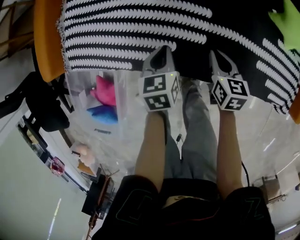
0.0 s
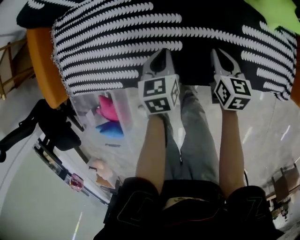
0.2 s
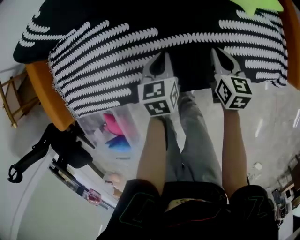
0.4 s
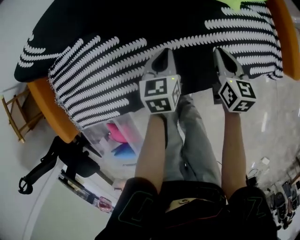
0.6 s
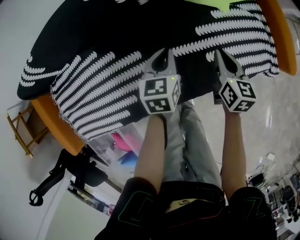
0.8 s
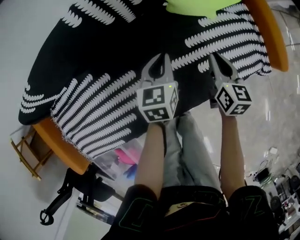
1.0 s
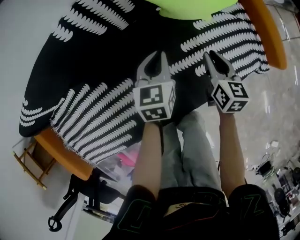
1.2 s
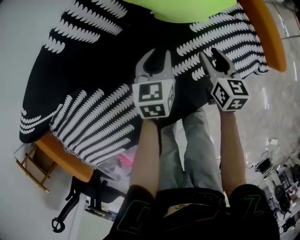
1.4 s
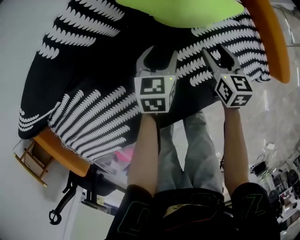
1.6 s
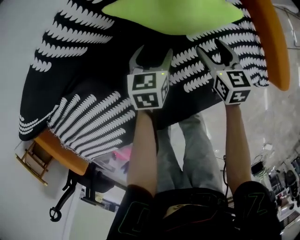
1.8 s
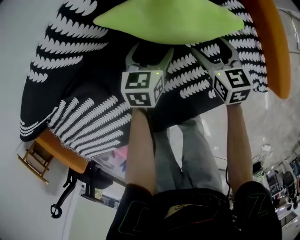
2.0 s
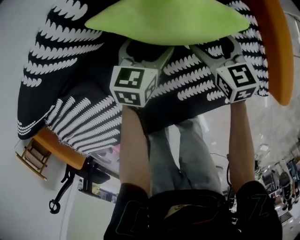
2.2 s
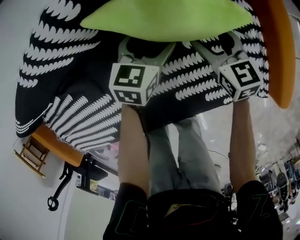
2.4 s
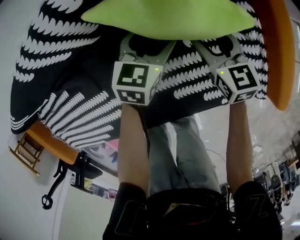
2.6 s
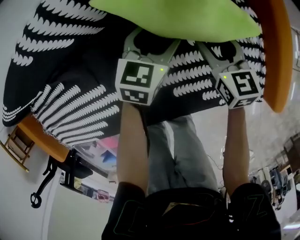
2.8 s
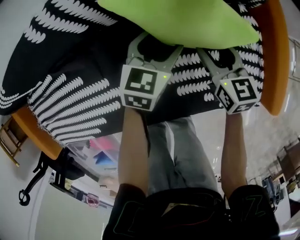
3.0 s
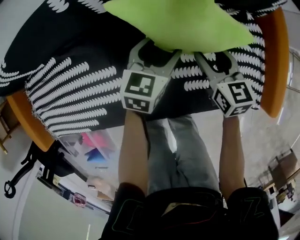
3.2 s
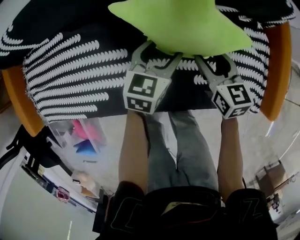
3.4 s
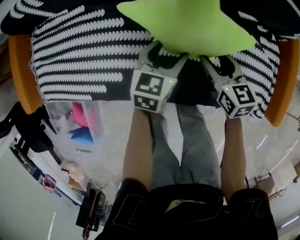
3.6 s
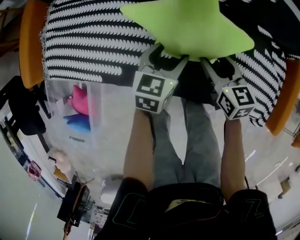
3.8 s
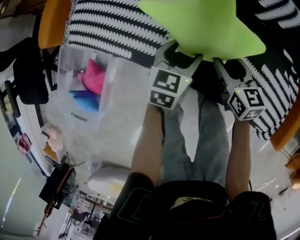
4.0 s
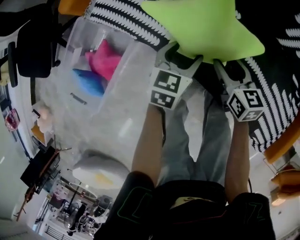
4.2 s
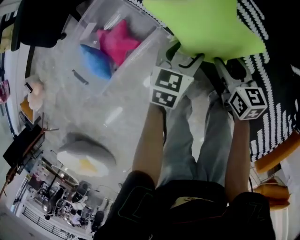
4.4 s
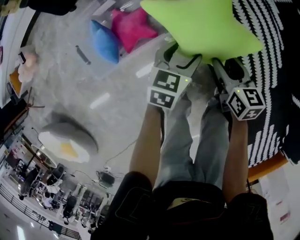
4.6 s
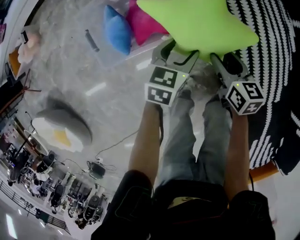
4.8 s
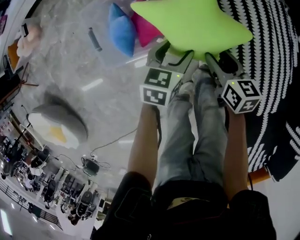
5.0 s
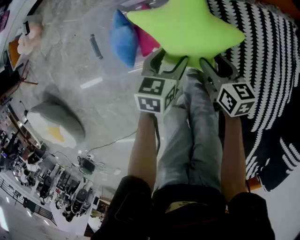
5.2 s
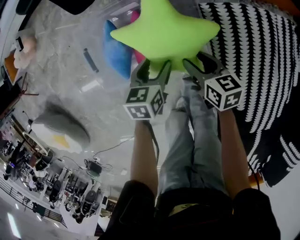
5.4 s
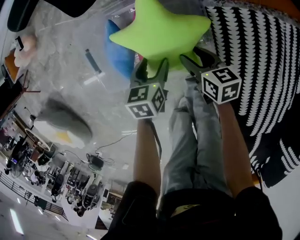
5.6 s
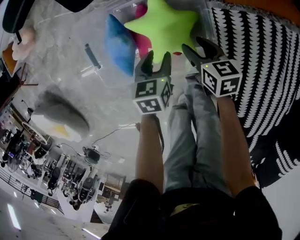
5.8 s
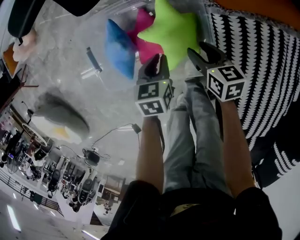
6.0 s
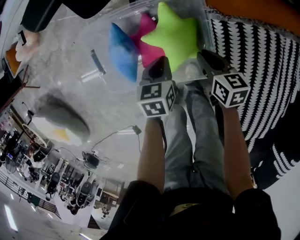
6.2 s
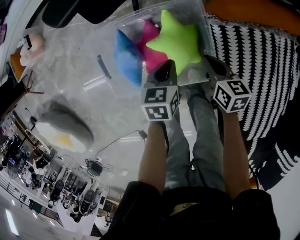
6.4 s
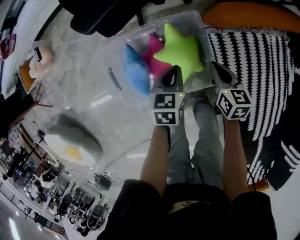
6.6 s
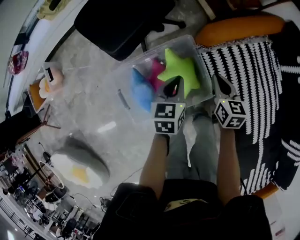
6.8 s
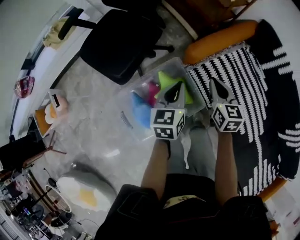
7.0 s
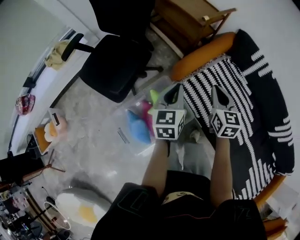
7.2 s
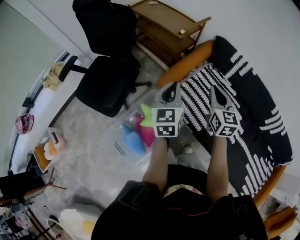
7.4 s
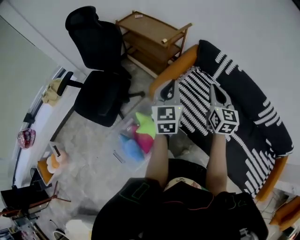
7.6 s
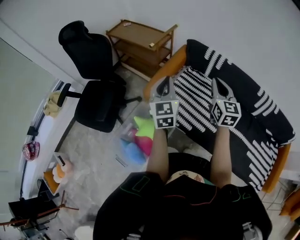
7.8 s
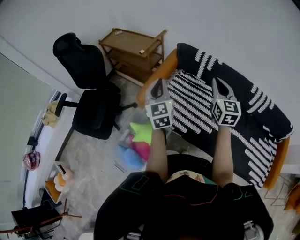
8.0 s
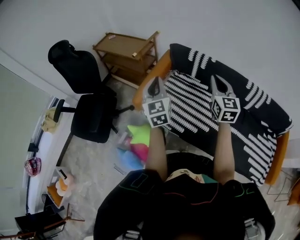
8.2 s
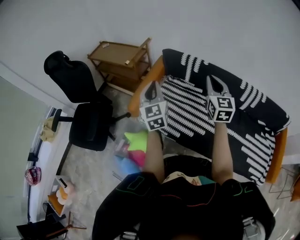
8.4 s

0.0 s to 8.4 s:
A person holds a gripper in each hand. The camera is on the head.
0.0 to 1.4 s: Both grippers are carried about 50 cm. The right gripper rotates about 40 degrees, and opens, while the left gripper changes its angle by approximately 50 degrees.
1.4 to 2.8 s: The left gripper travels forward and to the right by about 15 cm, and opens, while the right gripper goes approximately 15 cm forward, changes its angle by roughly 30 degrees, and opens, then closes once more.
2.8 to 4.2 s: The left gripper goes up and down, some 15 cm each way, reversing 2 times, and rotates approximately 50 degrees, while the right gripper moves up and down over approximately 20 cm, changing direction 2 times, and swivels approximately 50 degrees.
4.2 to 5.6 s: The two grippers travel together, approximately 50 cm. The right gripper rotates approximately 50 degrees, while the left gripper rotates some 70 degrees.
5.6 to 7.0 s: Both grippers move upward, roughly 30 cm. The right gripper turns by about 50 degrees, and closes its fingers. Meanwhile the left gripper rotates about 40 degrees, and closes.
7.0 to 8.4 s: The right gripper ends up some 50 cm from where it was, and swivels roughly 40 degrees; the left gripper ends up some 40 cm from where it was, and turns by some 30 degrees.

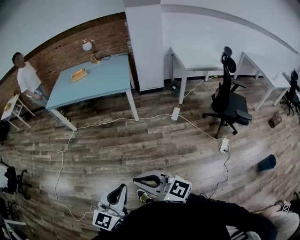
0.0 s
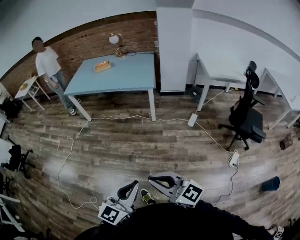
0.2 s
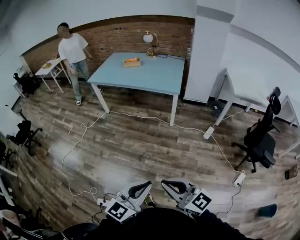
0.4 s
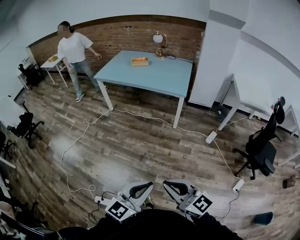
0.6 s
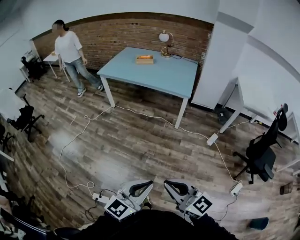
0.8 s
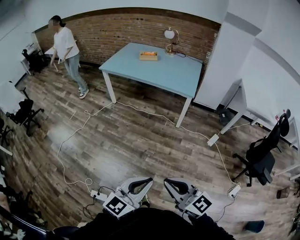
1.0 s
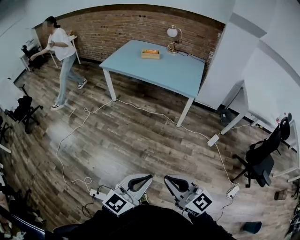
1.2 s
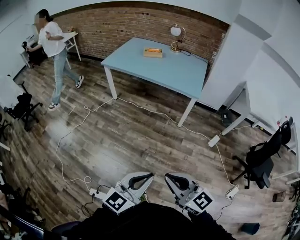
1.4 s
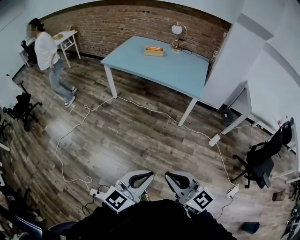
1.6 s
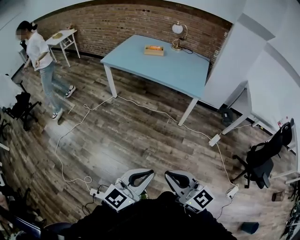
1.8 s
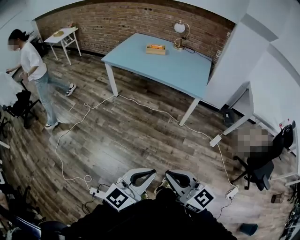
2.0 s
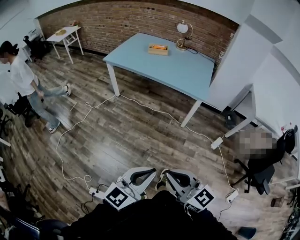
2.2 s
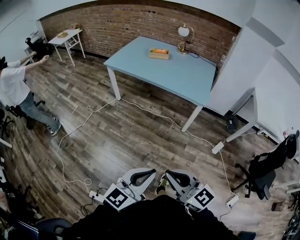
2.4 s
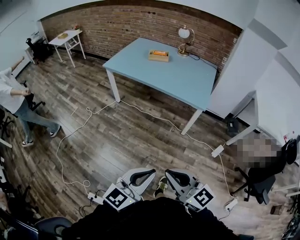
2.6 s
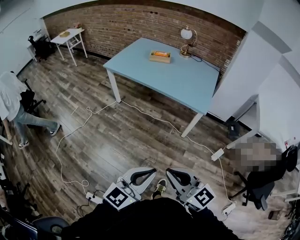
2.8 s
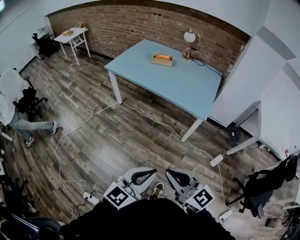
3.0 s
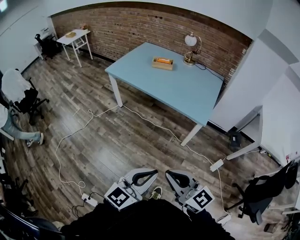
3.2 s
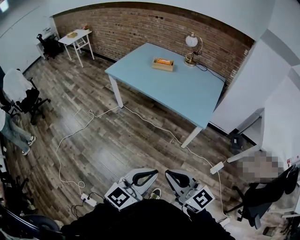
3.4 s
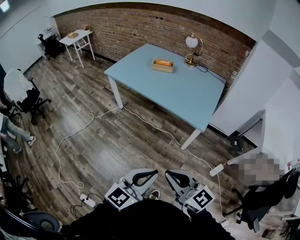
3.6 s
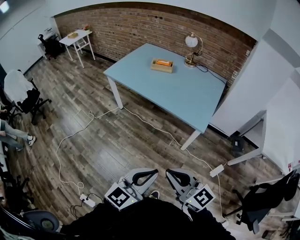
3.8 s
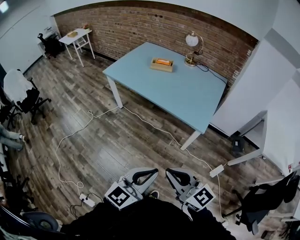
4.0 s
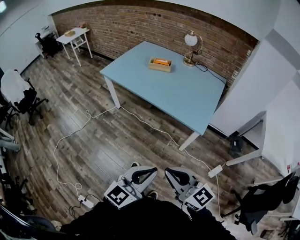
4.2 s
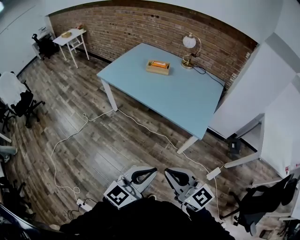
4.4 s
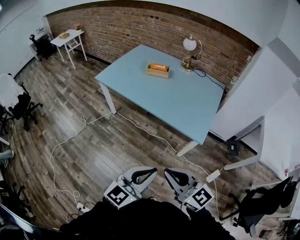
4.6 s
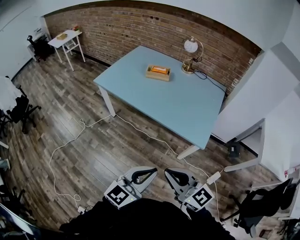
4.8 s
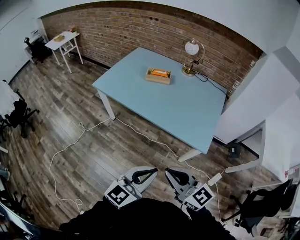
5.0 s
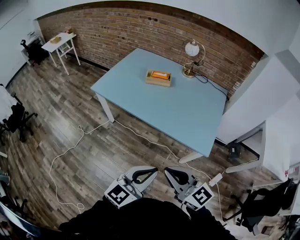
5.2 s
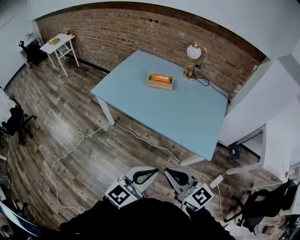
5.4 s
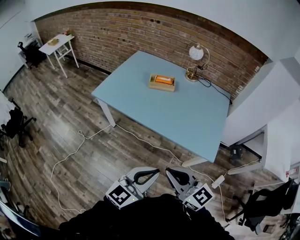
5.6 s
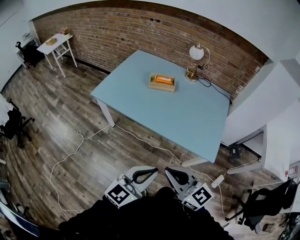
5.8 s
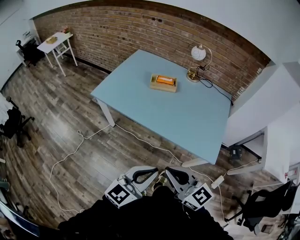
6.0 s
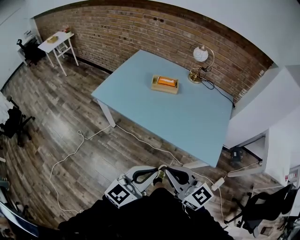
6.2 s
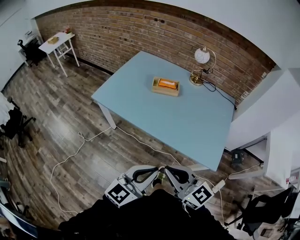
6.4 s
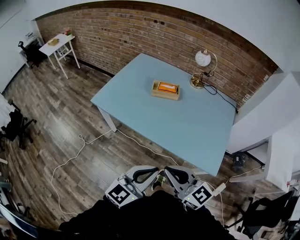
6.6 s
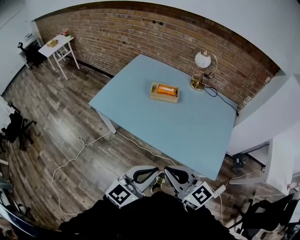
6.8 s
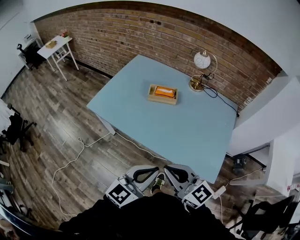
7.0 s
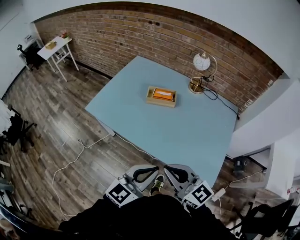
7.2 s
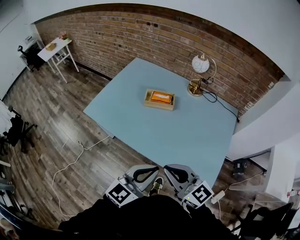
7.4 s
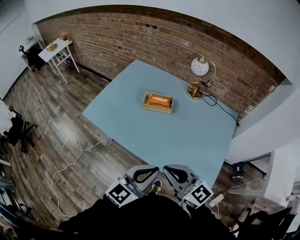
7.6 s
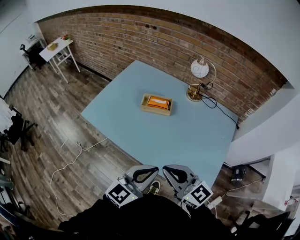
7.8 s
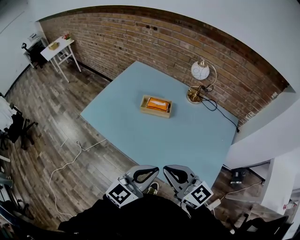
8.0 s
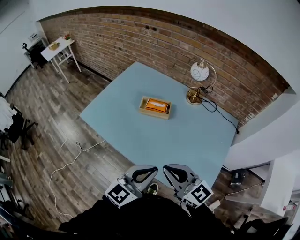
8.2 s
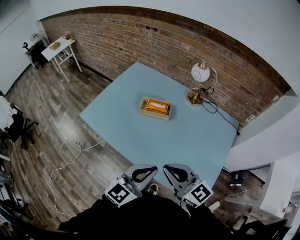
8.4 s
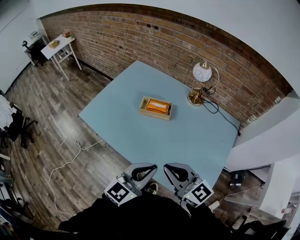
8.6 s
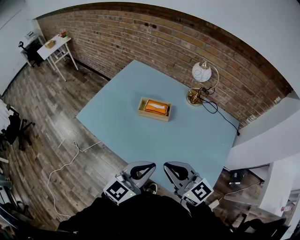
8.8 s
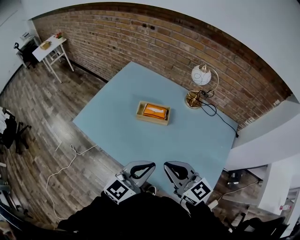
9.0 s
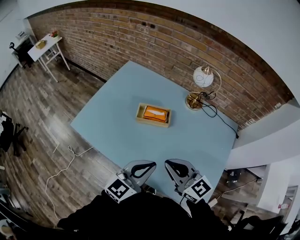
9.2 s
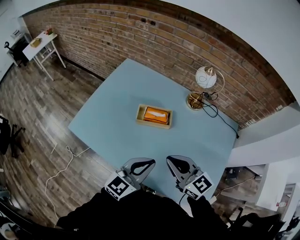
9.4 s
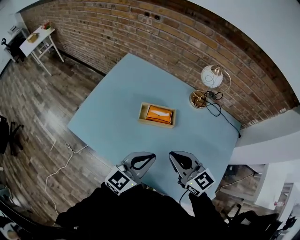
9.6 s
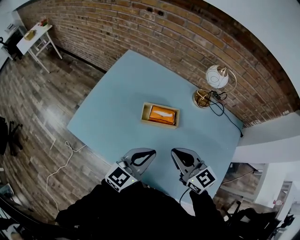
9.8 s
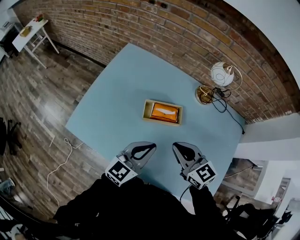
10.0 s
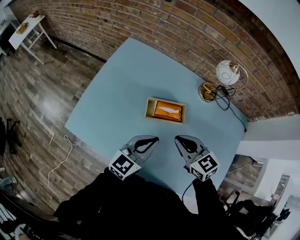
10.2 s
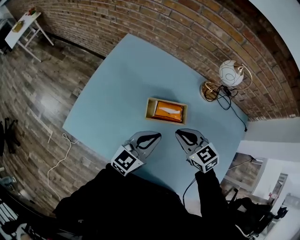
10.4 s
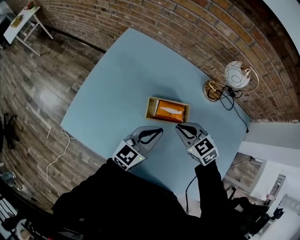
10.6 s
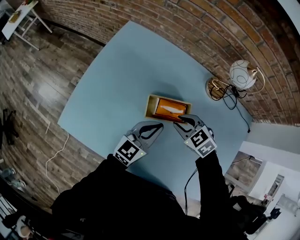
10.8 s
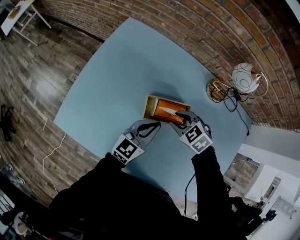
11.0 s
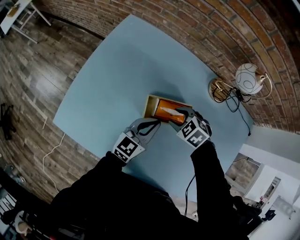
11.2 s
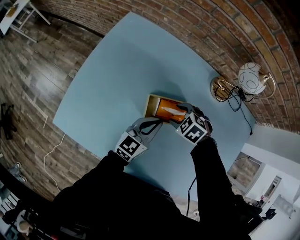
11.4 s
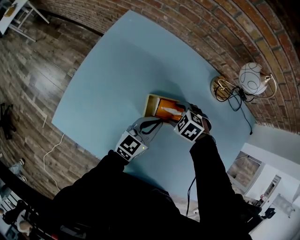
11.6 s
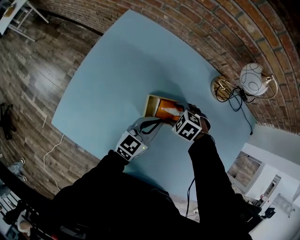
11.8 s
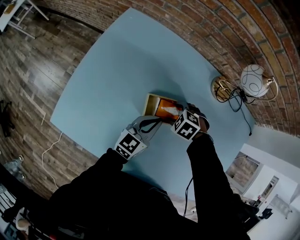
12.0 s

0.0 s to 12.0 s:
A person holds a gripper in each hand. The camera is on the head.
0.0 to 1.6 s: Both grippers move forward and to the left, some 20 cm.
1.6 to 3.0 s: Both grippers move forward and to the right, about 25 cm.
3.0 to 4.4 s: The grippers both shift forward and to the right by about 20 cm.
4.4 to 6.0 s: The grippers both shift forward and to the left by some 30 cm.
6.0 to 7.6 s: Both grippers travel together forward and to the right, about 25 cm.
7.6 to 9.0 s: Both grippers move forward, roughly 15 cm.
9.0 to 10.4 s: The grippers both shift forward and downward by some 30 cm. The right gripper points its fingers approximately 30 degrees further downward.
10.4 to 12.0 s: The grippers both shift downward by roughly 15 cm. The right gripper points its fingers some 40 degrees further downward, and opens.

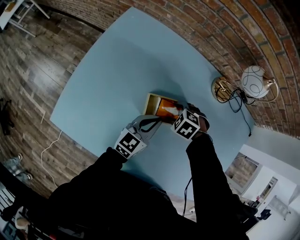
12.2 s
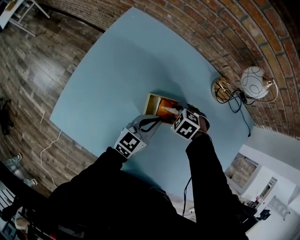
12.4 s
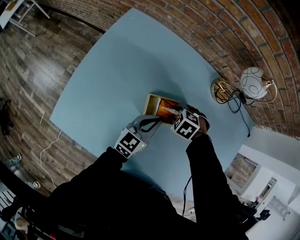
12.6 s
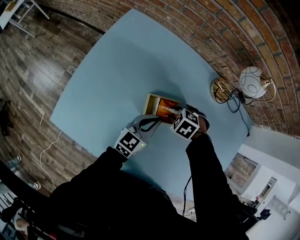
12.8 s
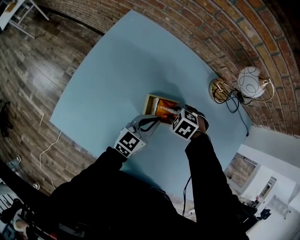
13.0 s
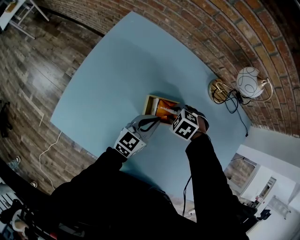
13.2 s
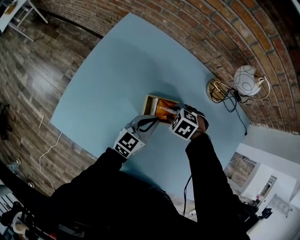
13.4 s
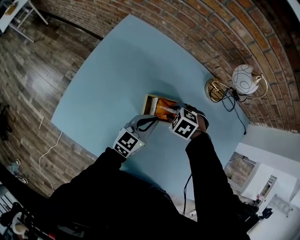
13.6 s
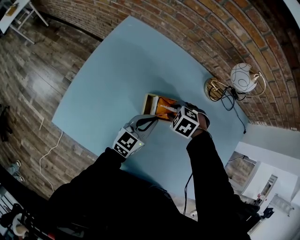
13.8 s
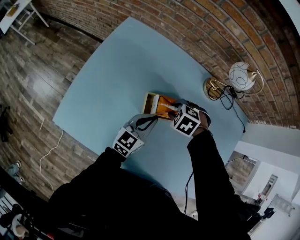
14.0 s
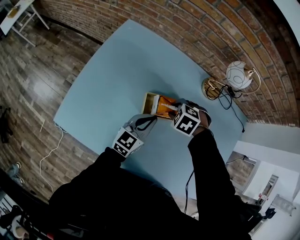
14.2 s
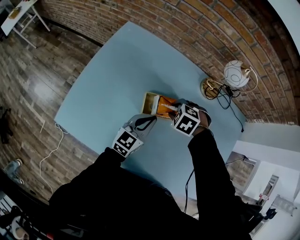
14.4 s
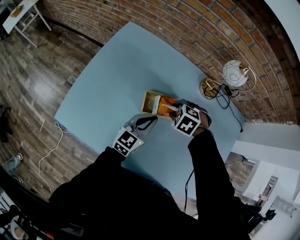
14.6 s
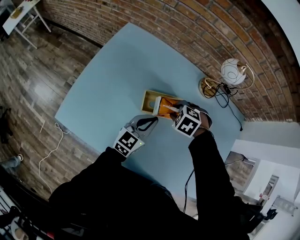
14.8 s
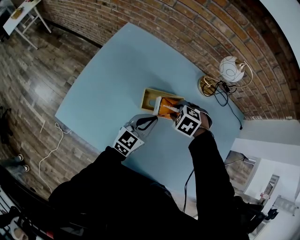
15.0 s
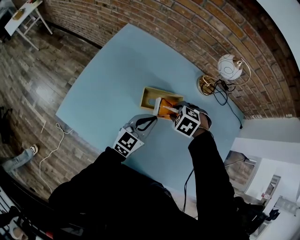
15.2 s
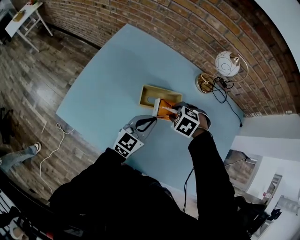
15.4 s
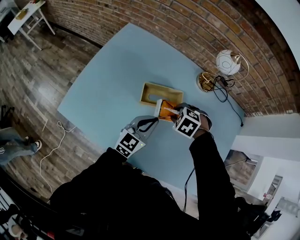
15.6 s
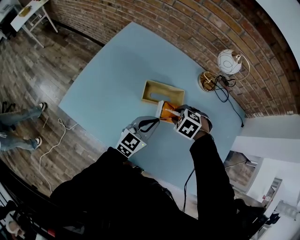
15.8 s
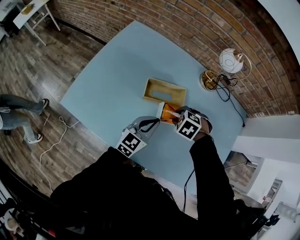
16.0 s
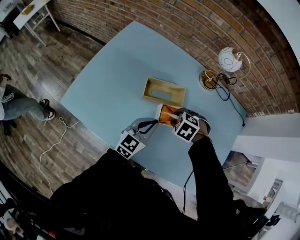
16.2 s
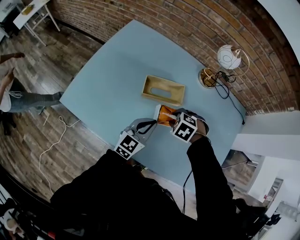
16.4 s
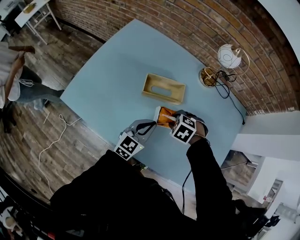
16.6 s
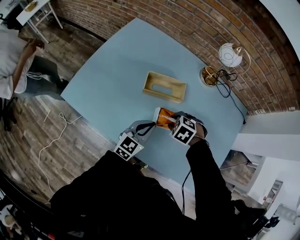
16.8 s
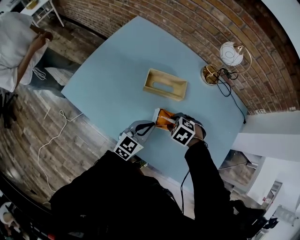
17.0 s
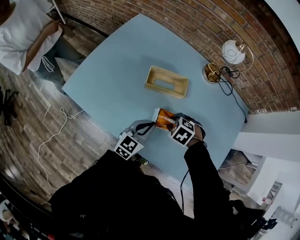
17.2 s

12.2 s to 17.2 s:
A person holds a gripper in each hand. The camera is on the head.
12.2 to 13.8 s: The right gripper heads upward, covering about 5 cm, and closes up.
13.8 to 15.6 s: The right gripper changes place by approximately 10 cm, while the left gripper shifts by approximately 10 cm.
15.6 to 17.2 s: The right gripper shifts by about 15 cm. Meanwhile the left gripper shifts by roughly 10 cm.
